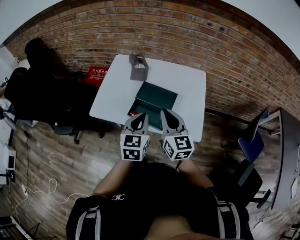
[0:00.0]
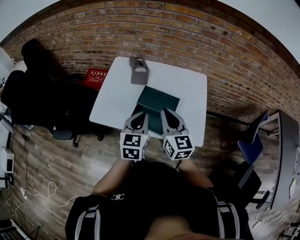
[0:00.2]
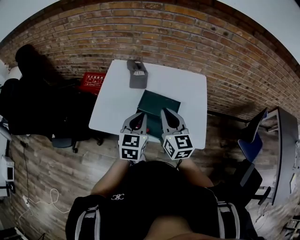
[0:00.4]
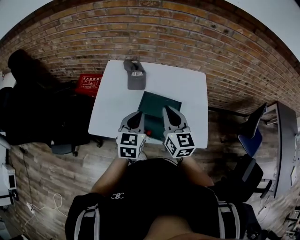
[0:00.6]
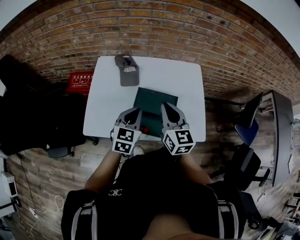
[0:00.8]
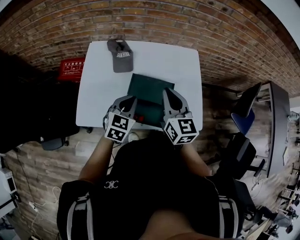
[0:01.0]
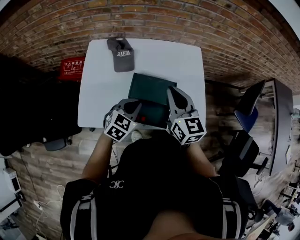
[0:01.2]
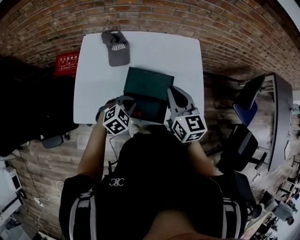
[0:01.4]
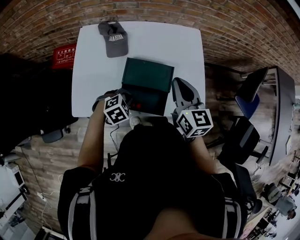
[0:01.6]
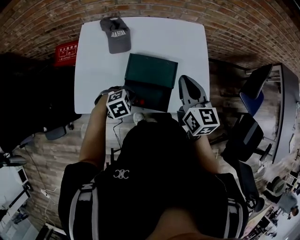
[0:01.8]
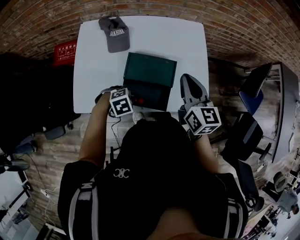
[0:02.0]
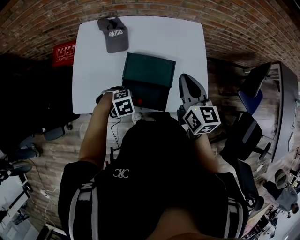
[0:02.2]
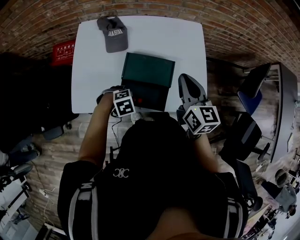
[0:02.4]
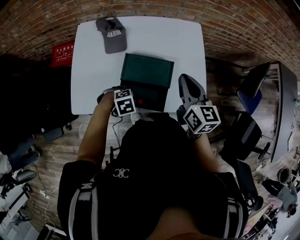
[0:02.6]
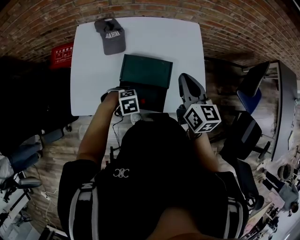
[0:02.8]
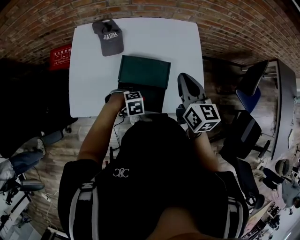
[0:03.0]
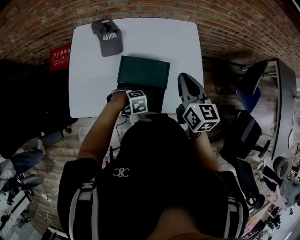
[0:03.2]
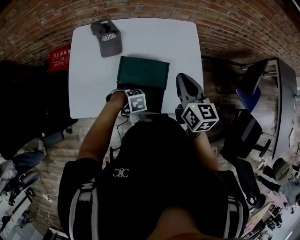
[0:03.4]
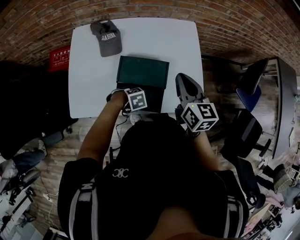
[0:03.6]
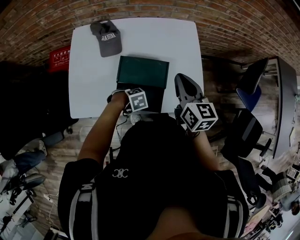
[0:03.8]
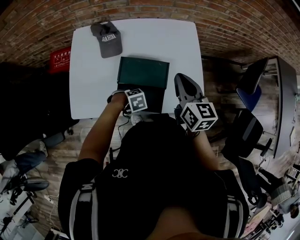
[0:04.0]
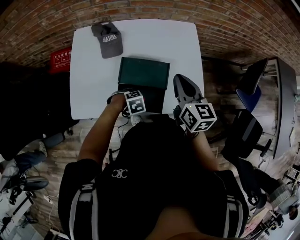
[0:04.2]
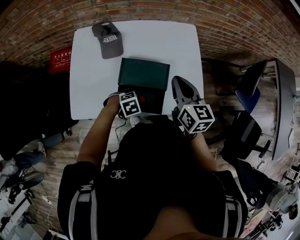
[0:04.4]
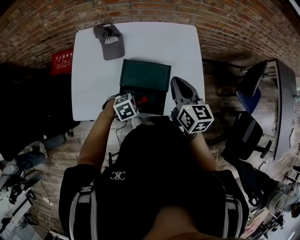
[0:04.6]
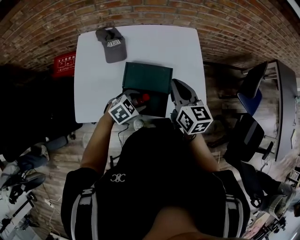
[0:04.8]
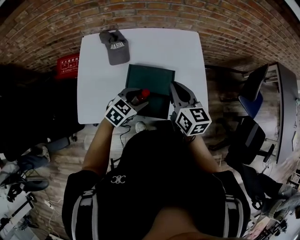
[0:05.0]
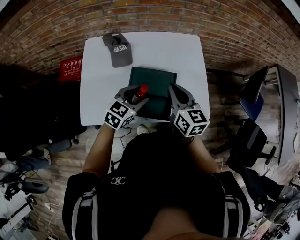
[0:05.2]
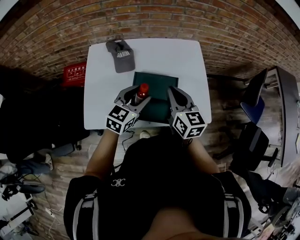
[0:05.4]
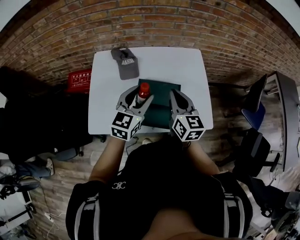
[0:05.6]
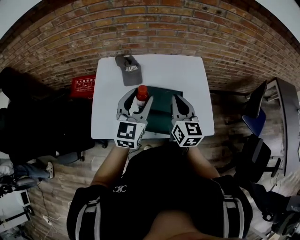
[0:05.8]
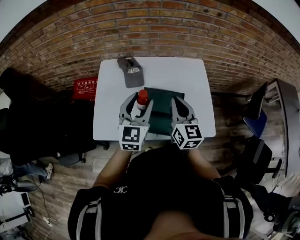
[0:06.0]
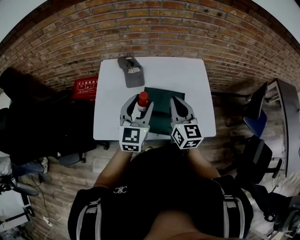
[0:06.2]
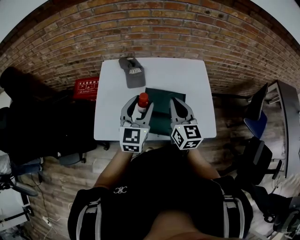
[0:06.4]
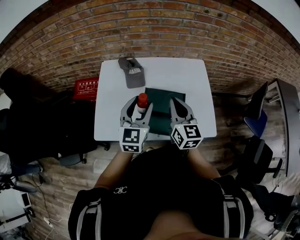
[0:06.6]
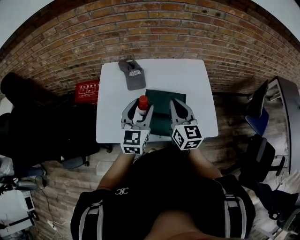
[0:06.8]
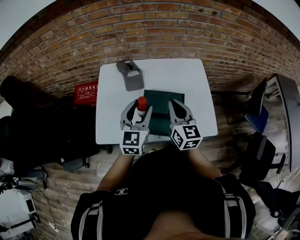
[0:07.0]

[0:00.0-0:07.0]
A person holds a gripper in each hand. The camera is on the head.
0.0 to 1.4 s: The right gripper changes place by approximately 15 cm. Meanwhile the left gripper goes about 15 cm downward, and tilts its fingers approximately 30 degrees downward.
1.4 to 2.8 s: The left gripper moves downward, some 10 cm, changes its angle by approximately 40 degrees, and opens up, while the right gripper moves about 5 cm.
2.8 to 4.2 s: The grippers stay close to where they were, moving slightly.
4.2 to 5.6 s: The right gripper moves roughly 10 cm. Meanwhile the left gripper heads upward, covering some 30 cm, and angles its fingers upward, by some 60 degrees.
5.6 to 7.0 s: There are only small adjustments of the grippers.

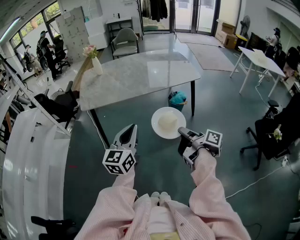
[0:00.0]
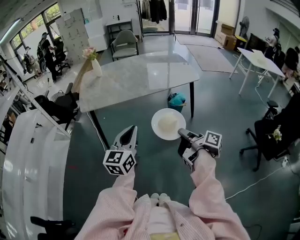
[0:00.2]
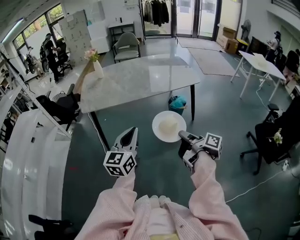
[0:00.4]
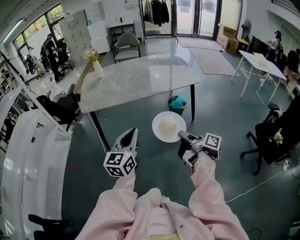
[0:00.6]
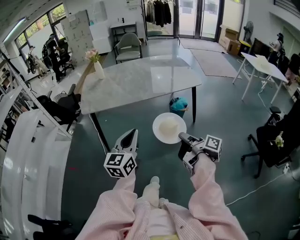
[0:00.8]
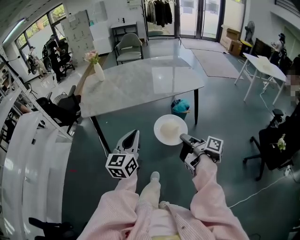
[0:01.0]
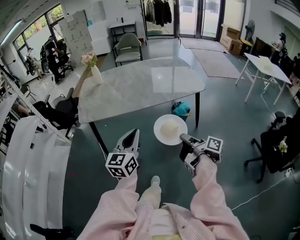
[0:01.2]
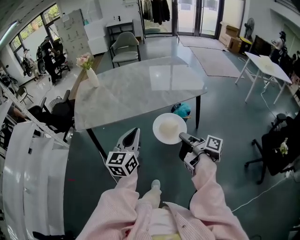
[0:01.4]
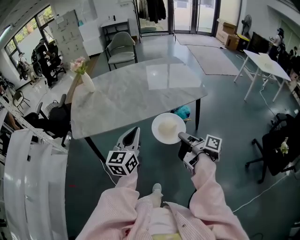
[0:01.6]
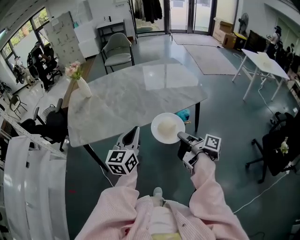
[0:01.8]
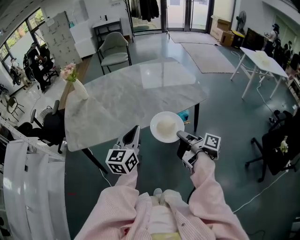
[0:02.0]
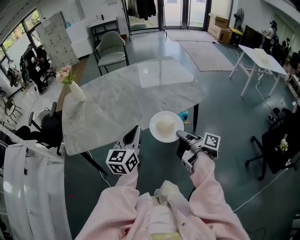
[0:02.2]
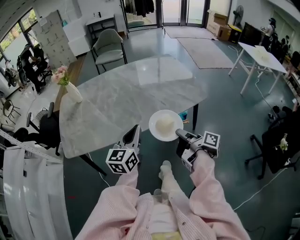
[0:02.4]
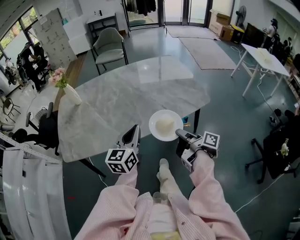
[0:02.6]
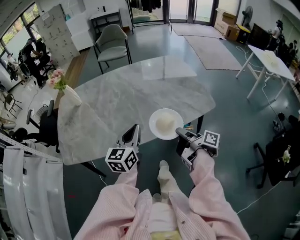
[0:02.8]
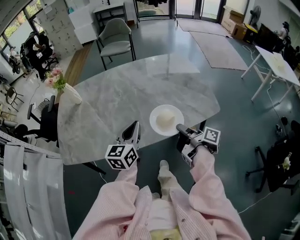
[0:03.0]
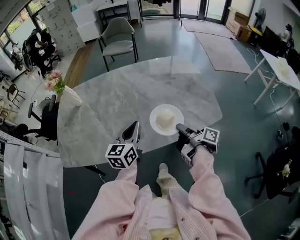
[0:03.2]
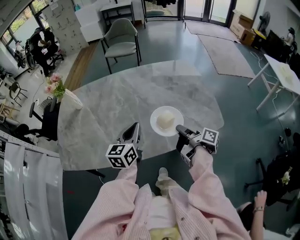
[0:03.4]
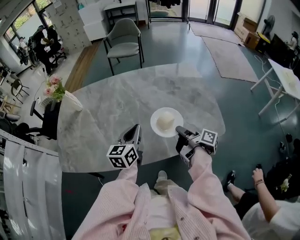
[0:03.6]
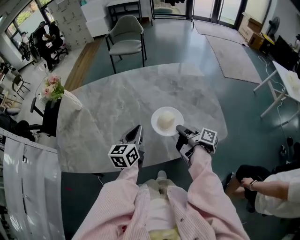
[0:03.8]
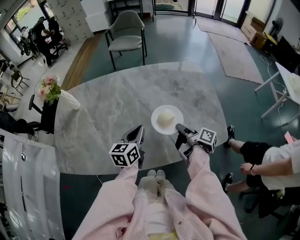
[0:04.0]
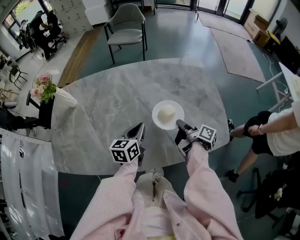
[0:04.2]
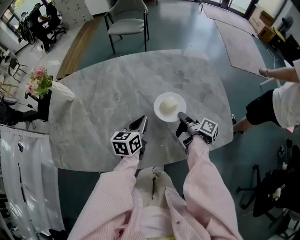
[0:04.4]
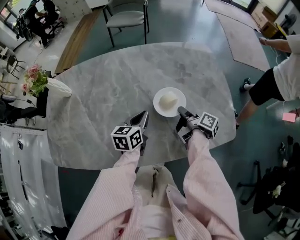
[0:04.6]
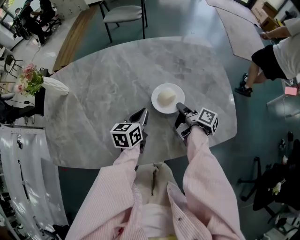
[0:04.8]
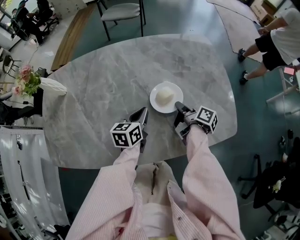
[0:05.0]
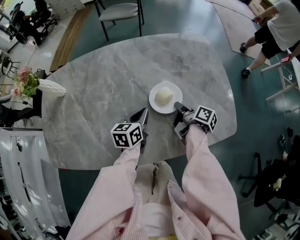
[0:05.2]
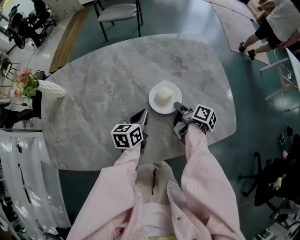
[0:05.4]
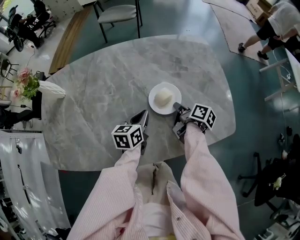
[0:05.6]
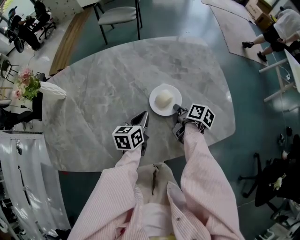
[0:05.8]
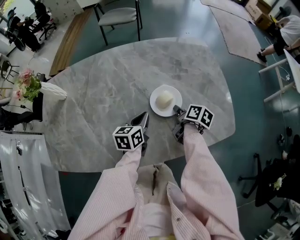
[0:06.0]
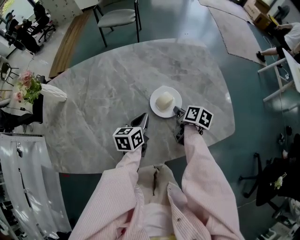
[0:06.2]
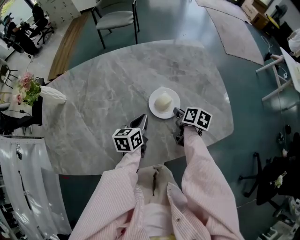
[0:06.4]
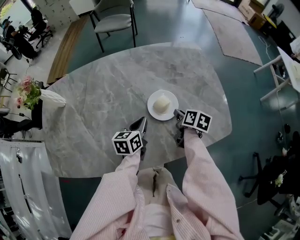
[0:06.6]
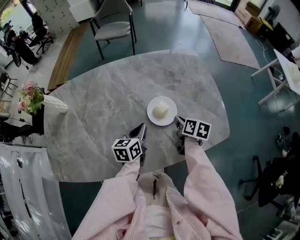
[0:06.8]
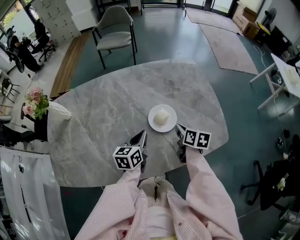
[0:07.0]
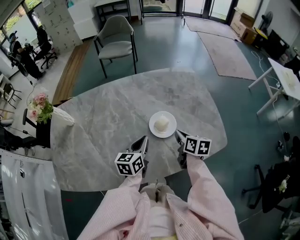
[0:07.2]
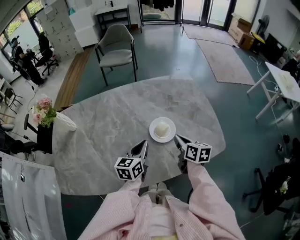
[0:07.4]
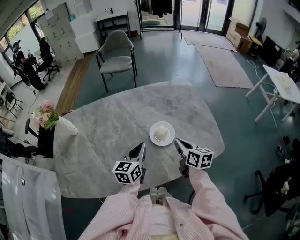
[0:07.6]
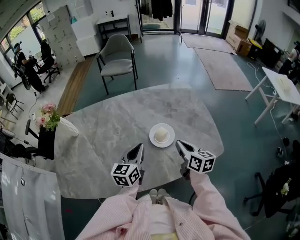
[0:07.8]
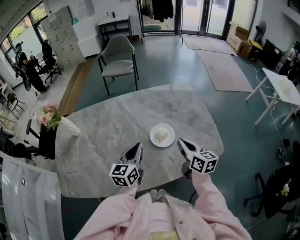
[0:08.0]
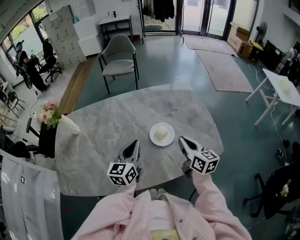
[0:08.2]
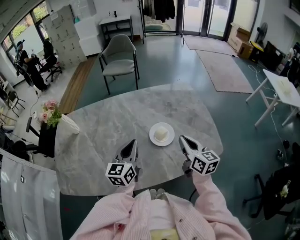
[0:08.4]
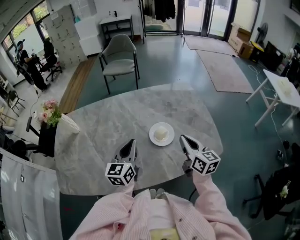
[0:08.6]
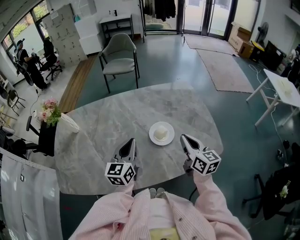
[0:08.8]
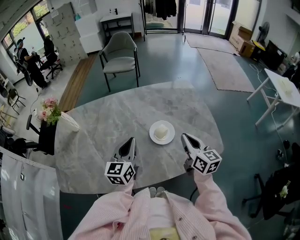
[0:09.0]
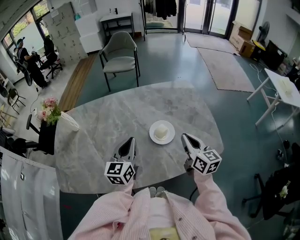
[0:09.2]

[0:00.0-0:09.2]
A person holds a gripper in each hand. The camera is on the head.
0.0 to 1.6 s: The left gripper changes place by about 25 cm.
1.6 to 3.0 s: The left gripper changes place by about 30 cm.
3.0 to 4.6 s: The left gripper ends up some 25 cm from where it was, and turns by about 20 degrees.
6.2 to 7.6 s: The left gripper moves upward, some 10 cm.
7.6 to 9.2 s: The left gripper heads upward, covering roughly 5 cm.

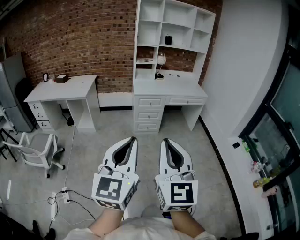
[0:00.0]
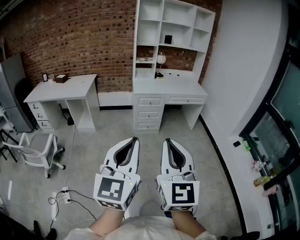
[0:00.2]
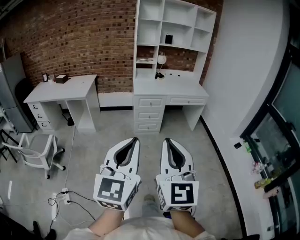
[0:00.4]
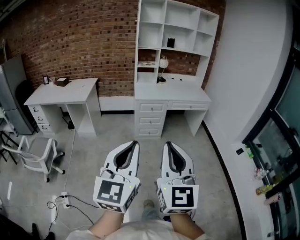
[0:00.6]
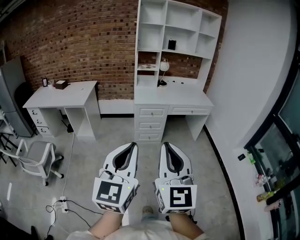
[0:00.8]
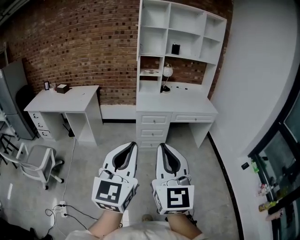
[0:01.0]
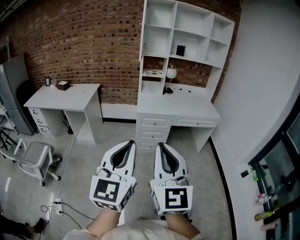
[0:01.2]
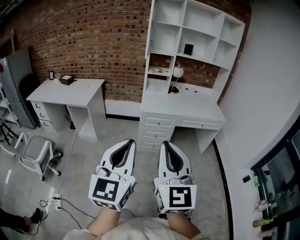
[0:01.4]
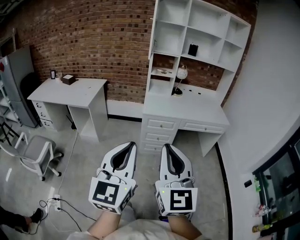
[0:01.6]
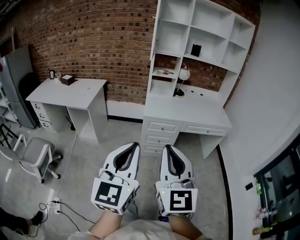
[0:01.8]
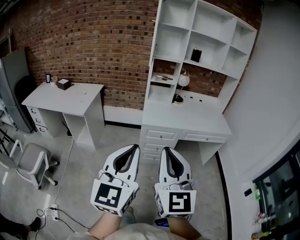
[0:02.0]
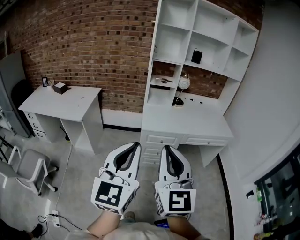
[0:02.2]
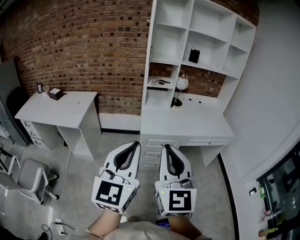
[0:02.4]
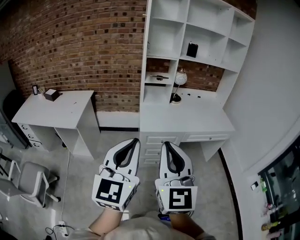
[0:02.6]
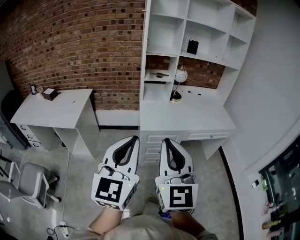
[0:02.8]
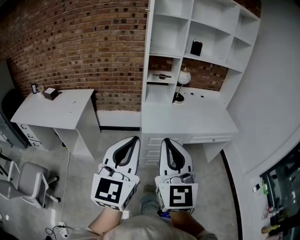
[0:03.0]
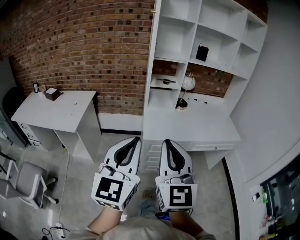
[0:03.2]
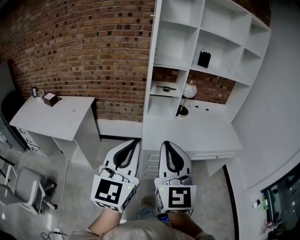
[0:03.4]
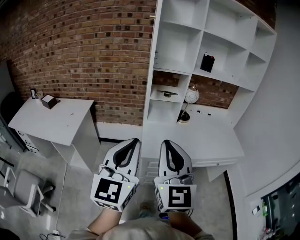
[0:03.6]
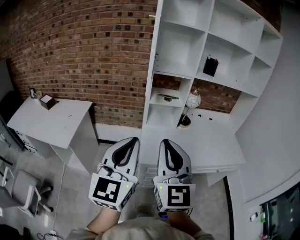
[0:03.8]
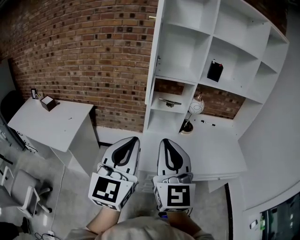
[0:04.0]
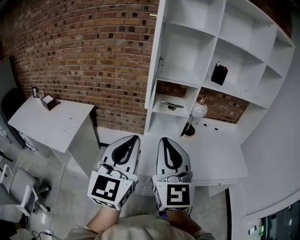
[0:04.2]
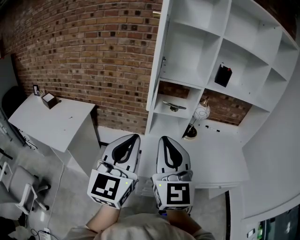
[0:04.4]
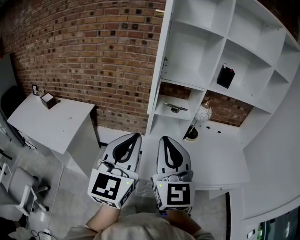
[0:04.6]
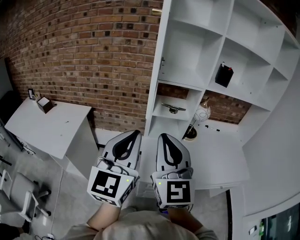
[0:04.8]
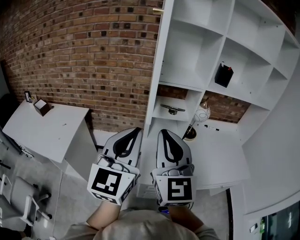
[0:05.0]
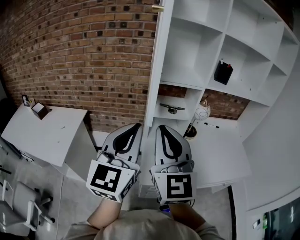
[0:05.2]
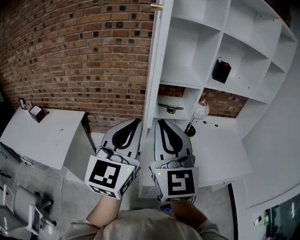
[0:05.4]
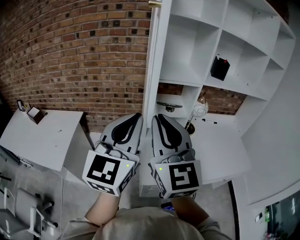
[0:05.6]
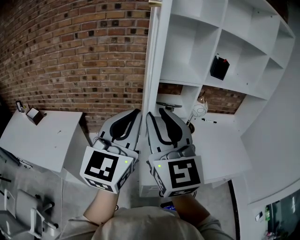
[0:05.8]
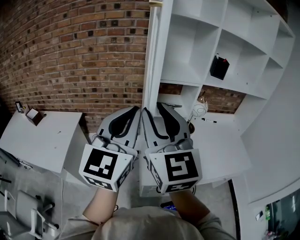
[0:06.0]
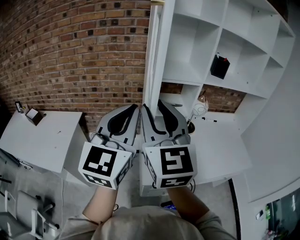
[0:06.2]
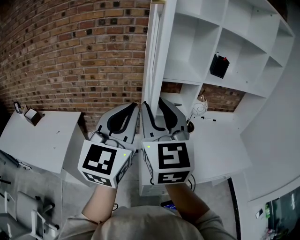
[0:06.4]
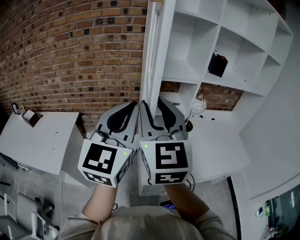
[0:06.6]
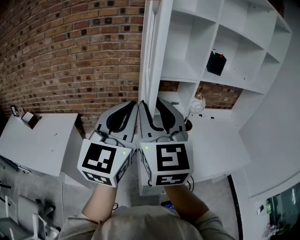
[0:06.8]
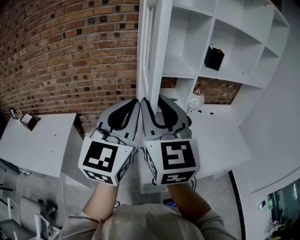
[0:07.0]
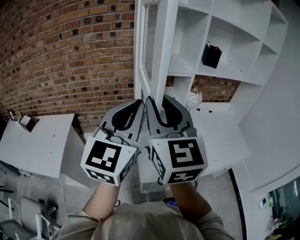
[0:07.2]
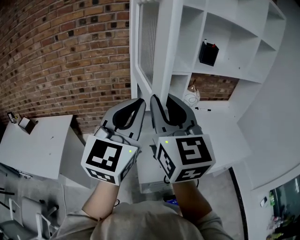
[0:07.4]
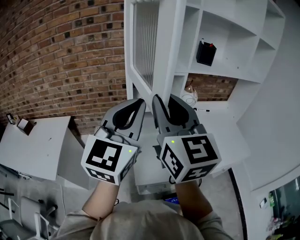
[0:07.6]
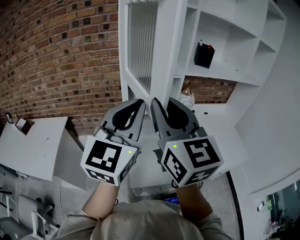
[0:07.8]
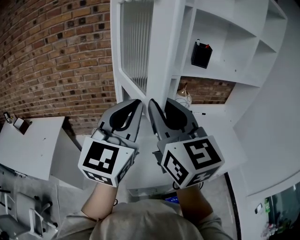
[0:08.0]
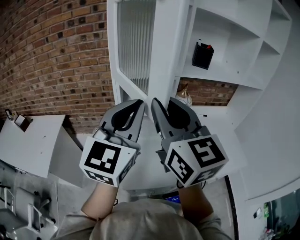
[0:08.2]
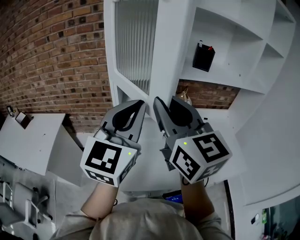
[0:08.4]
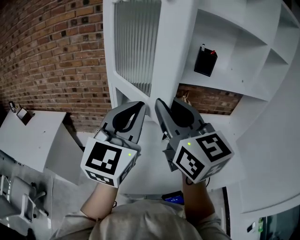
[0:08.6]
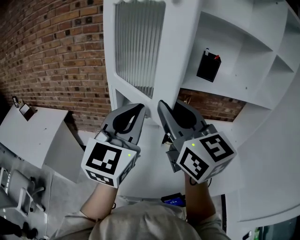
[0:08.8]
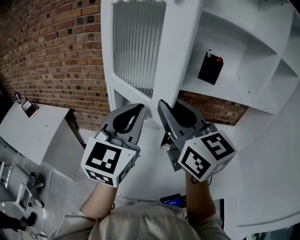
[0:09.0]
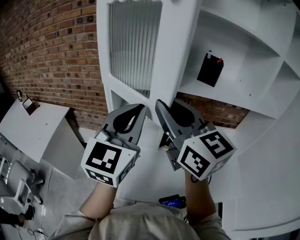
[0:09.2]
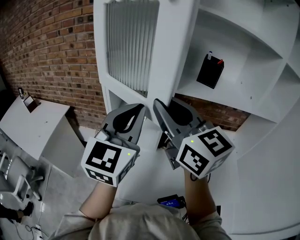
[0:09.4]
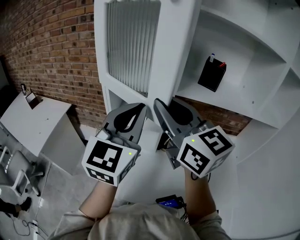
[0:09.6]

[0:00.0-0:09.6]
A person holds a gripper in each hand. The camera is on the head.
0.0 to 1.6 s: The two grippers go roughly 35 cm forward.
1.6 to 3.2 s: Both grippers travel together forward, roughly 35 cm.
3.2 to 4.8 s: The grippers both shift forward by roughly 35 cm.
4.8 to 6.4 s: The left gripper shifts some 10 cm forward and upward. The right gripper moves forward, to the left and upward, about 15 cm, and opens up.
6.4 to 8.0 s: The right gripper heads to the right, covering some 15 cm. Meanwhile the left gripper shifts roughly 15 cm to the right and forward.
8.0 to 9.6 s: The grippers both shift to the right and forward by about 15 cm. The right gripper rotates approximately 30 degrees.
